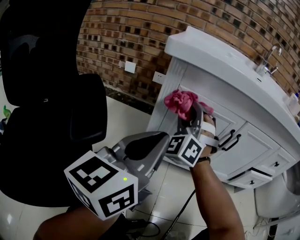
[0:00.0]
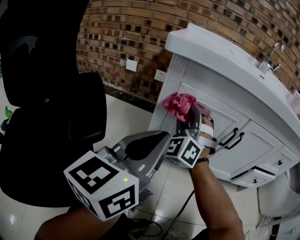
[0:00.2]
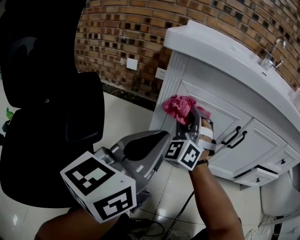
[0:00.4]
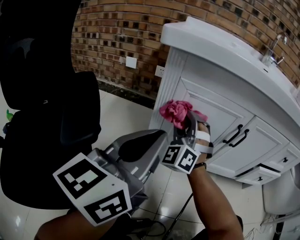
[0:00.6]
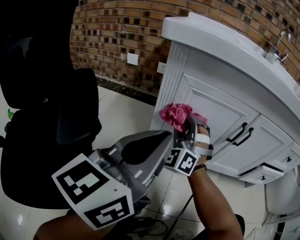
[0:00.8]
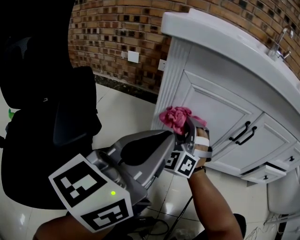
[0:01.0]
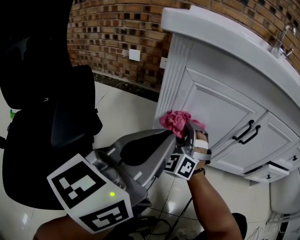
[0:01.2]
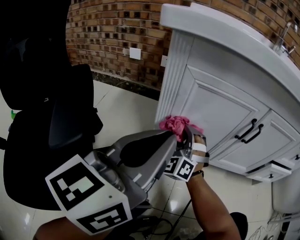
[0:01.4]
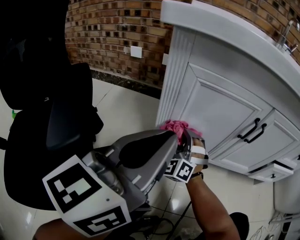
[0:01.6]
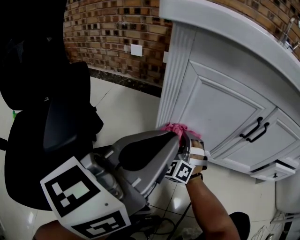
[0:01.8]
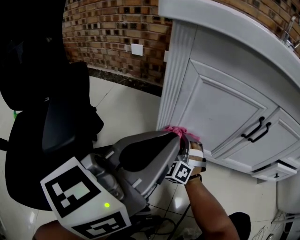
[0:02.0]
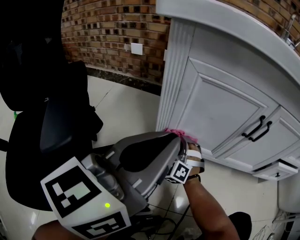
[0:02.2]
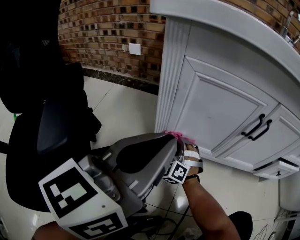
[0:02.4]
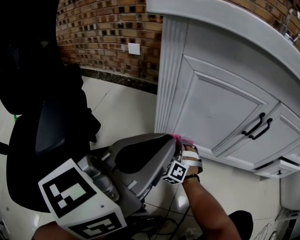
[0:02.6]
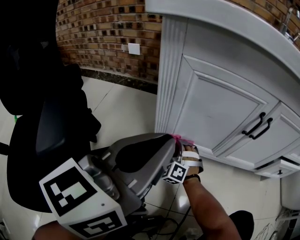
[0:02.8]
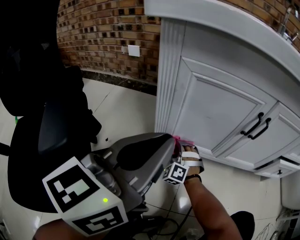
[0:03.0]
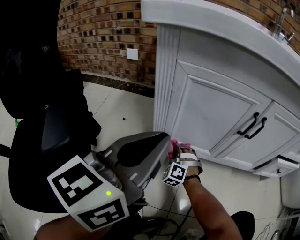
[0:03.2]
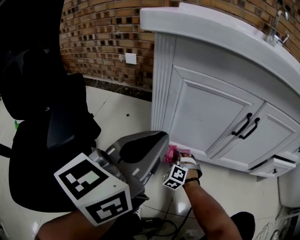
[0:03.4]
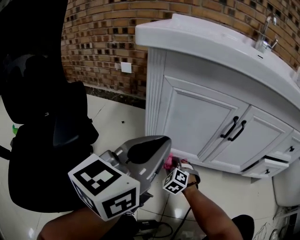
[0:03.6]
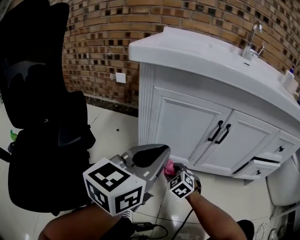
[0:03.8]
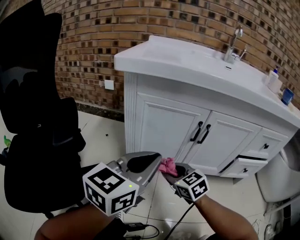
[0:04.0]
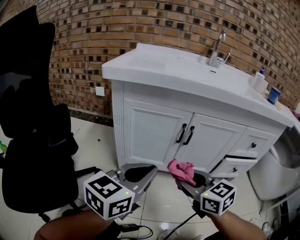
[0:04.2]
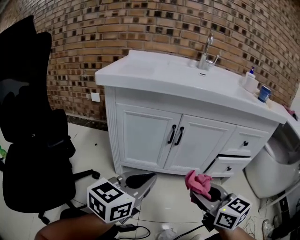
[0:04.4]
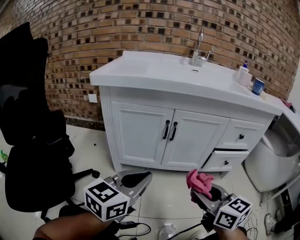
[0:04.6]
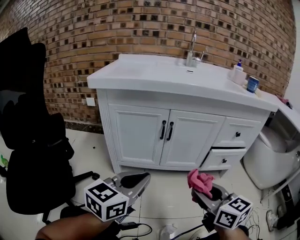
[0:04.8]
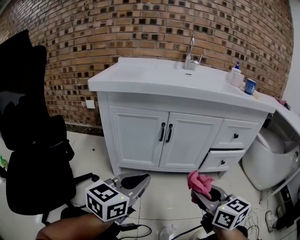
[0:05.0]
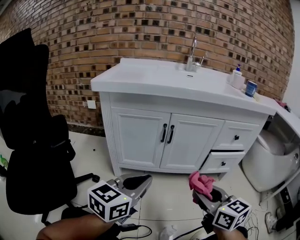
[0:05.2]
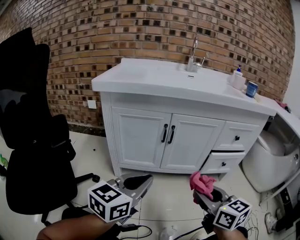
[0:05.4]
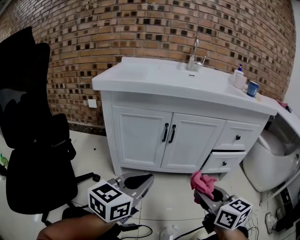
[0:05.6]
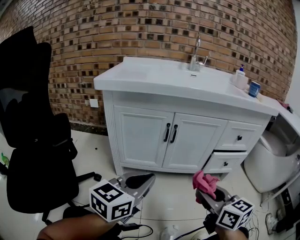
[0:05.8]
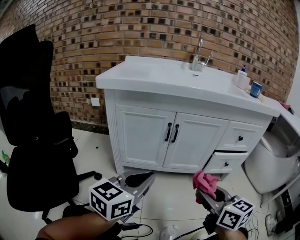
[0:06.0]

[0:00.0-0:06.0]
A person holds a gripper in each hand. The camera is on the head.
0:00.0 to 0:01.6: The right gripper moves downward, roughly 20 cm.
0:01.6 to 0:03.0: The right gripper shifts some 15 cm downward.
0:03.0 to 0:04.4: The left gripper moves to the right and backward, approximately 20 cm. Meanwhile the right gripper travels upward, to the right and backward by approximately 50 cm, and rolls clockwise, seen from behind, by approximately 70 degrees.
0:04.4 to 0:06.0: The right gripper shifts by approximately 5 cm.

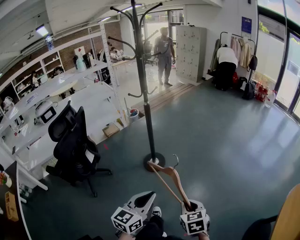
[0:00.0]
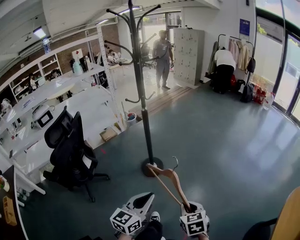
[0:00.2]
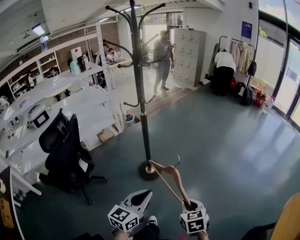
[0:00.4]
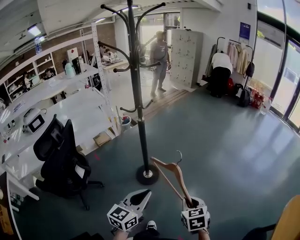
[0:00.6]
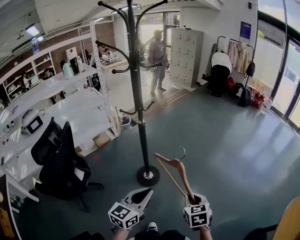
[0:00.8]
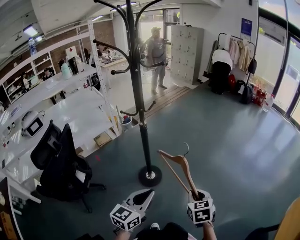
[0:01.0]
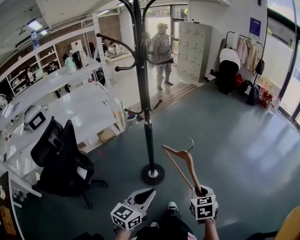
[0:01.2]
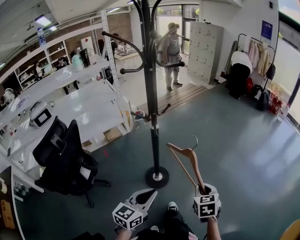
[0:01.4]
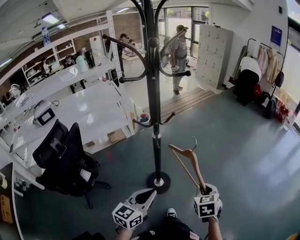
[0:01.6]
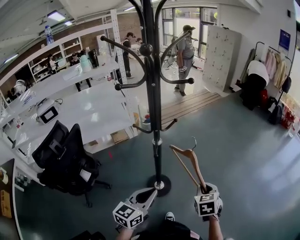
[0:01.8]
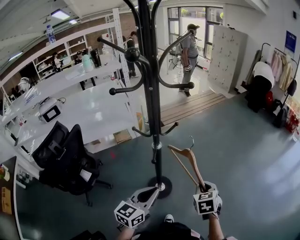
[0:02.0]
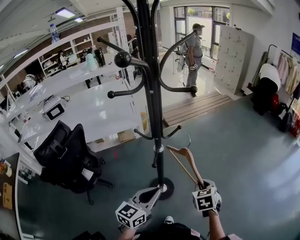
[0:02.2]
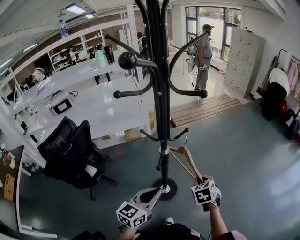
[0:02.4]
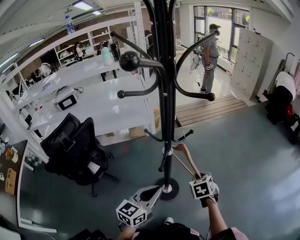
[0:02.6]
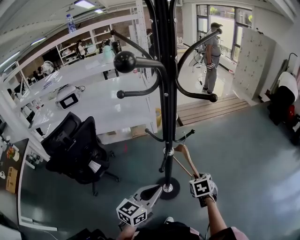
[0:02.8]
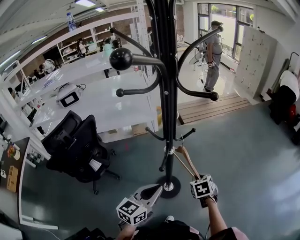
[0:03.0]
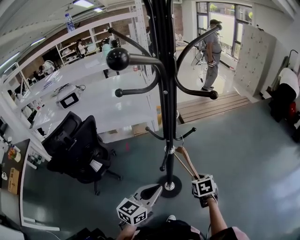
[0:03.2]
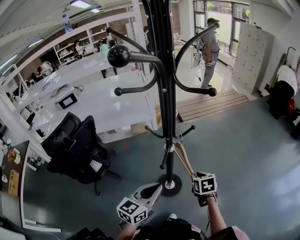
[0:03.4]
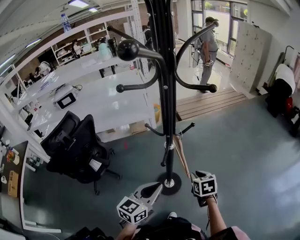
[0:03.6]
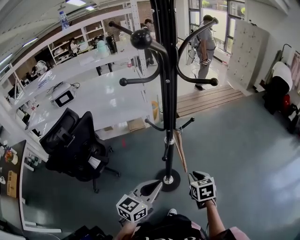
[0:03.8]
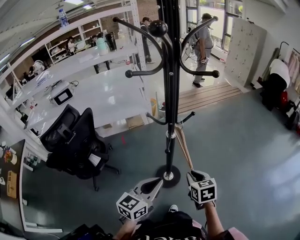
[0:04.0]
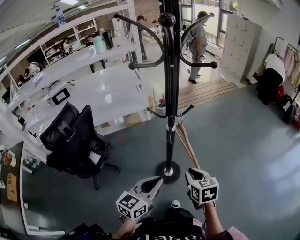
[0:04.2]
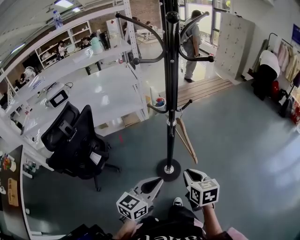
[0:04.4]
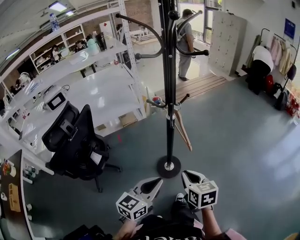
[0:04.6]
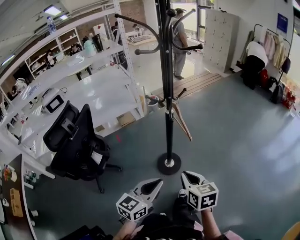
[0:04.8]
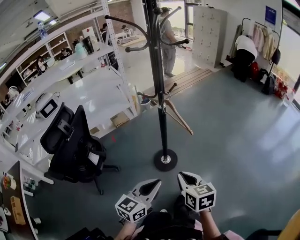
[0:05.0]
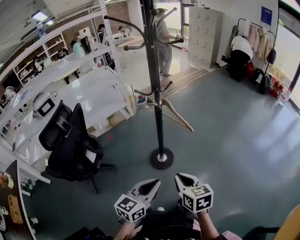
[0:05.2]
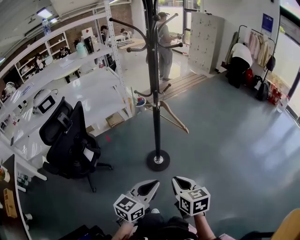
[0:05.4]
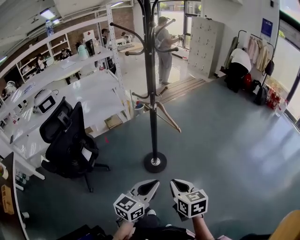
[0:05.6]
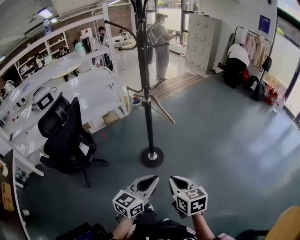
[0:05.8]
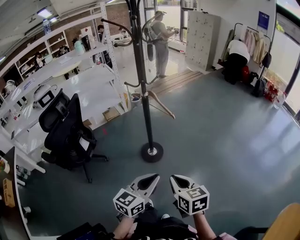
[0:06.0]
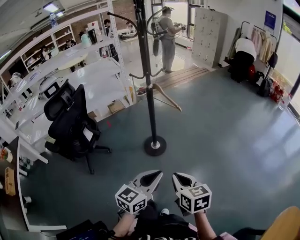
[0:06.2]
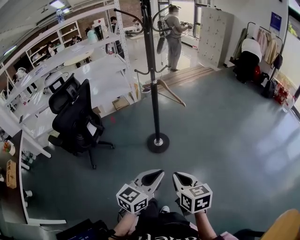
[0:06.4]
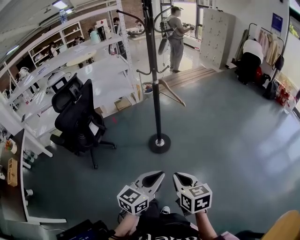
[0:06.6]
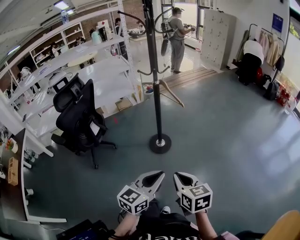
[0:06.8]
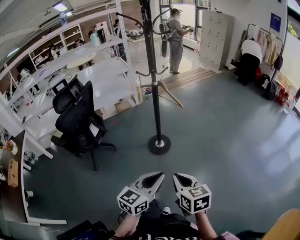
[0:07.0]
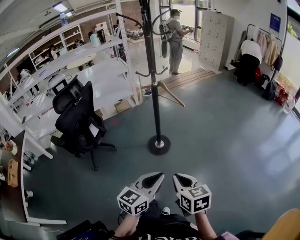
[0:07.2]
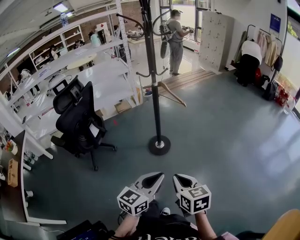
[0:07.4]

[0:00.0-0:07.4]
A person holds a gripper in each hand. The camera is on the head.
0:00.0 to 0:01.4: The grippers both shift forward by some 35 cm.
0:01.4 to 0:03.0: The two grippers go about 25 cm forward. The right gripper changes its angle by approximately 30 degrees. The left gripper turns by about 20 degrees.
0:03.0 to 0:04.4: The right gripper moves backward, to the left and upward, approximately 25 cm, and turns by roughly 30 degrees, while the left gripper shifts about 10 cm backward.
0:04.4 to 0:06.0: The left gripper goes about 30 cm backward and to the right; the right gripper shifts approximately 30 cm backward.
0:06.0 to 0:07.4: The two grippers go roughly 10 cm backward.

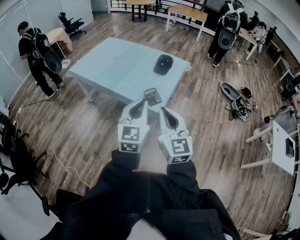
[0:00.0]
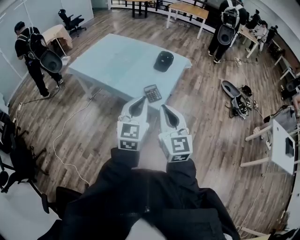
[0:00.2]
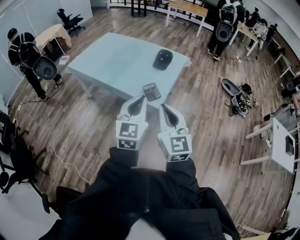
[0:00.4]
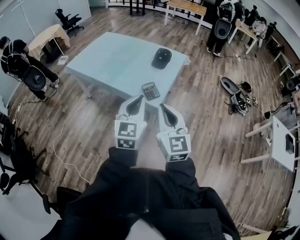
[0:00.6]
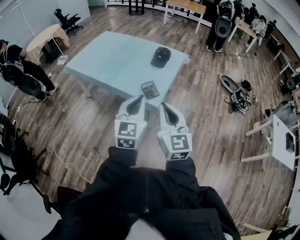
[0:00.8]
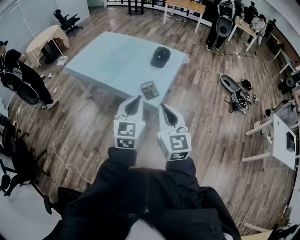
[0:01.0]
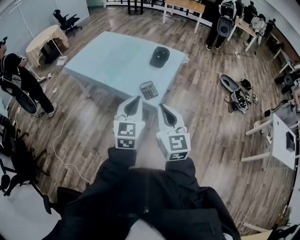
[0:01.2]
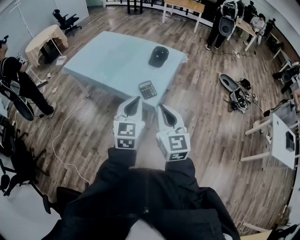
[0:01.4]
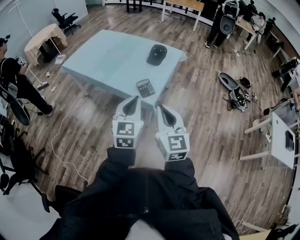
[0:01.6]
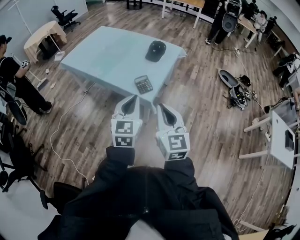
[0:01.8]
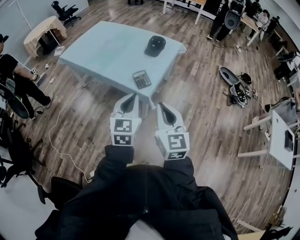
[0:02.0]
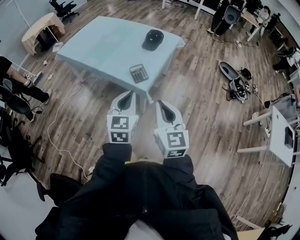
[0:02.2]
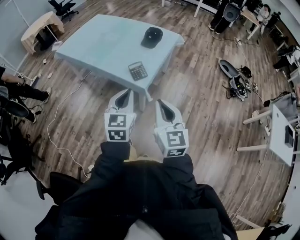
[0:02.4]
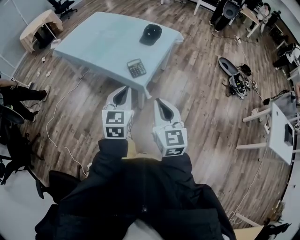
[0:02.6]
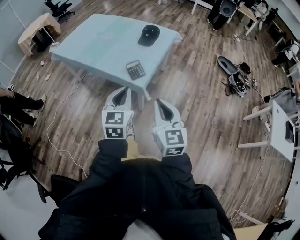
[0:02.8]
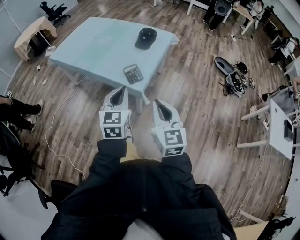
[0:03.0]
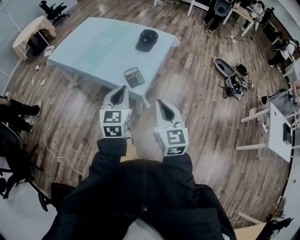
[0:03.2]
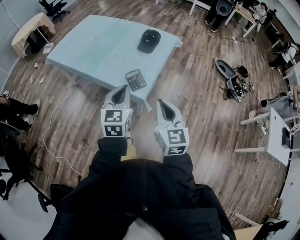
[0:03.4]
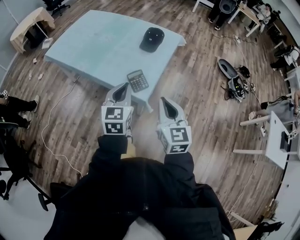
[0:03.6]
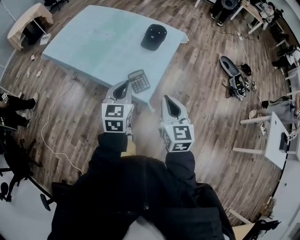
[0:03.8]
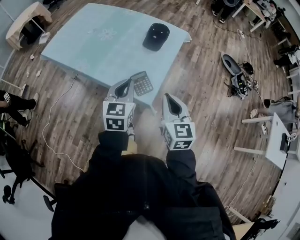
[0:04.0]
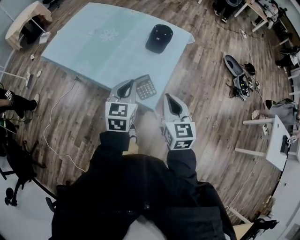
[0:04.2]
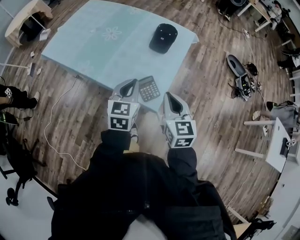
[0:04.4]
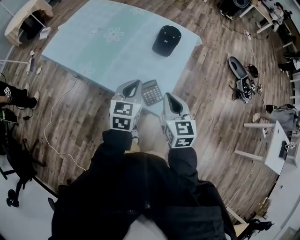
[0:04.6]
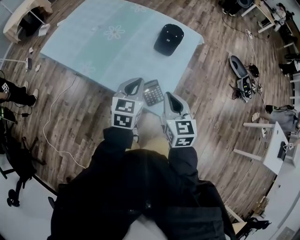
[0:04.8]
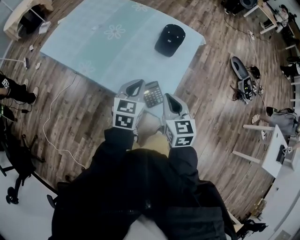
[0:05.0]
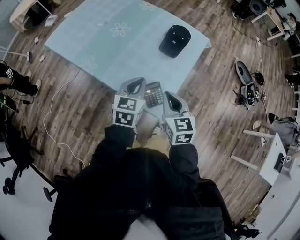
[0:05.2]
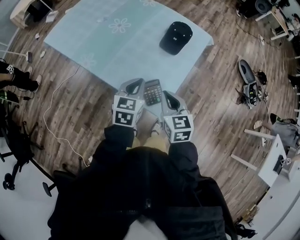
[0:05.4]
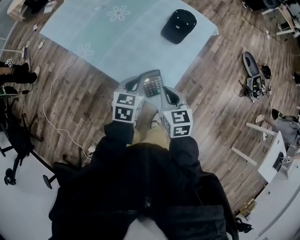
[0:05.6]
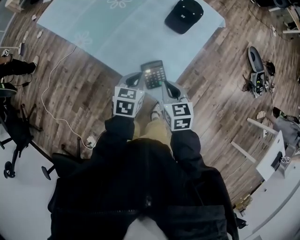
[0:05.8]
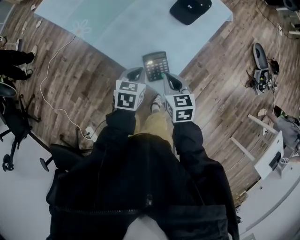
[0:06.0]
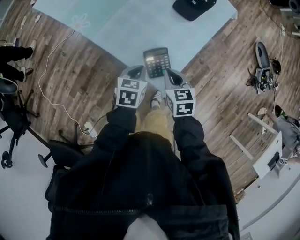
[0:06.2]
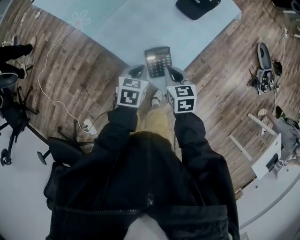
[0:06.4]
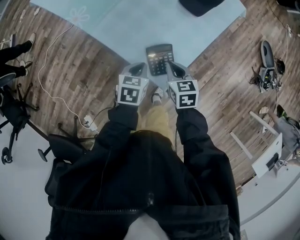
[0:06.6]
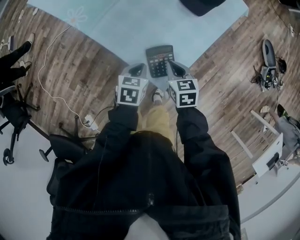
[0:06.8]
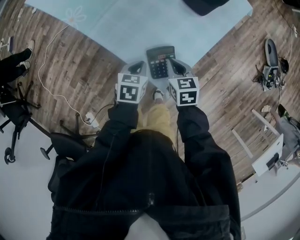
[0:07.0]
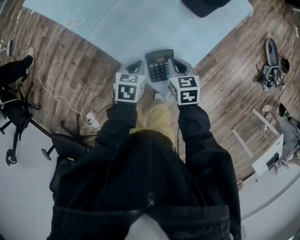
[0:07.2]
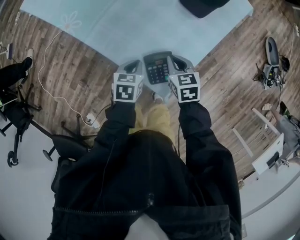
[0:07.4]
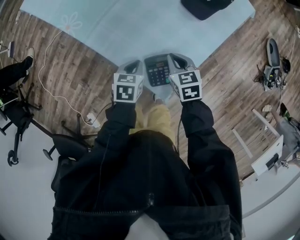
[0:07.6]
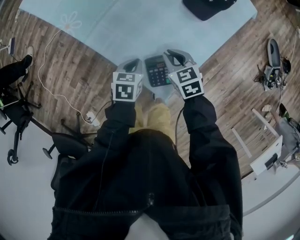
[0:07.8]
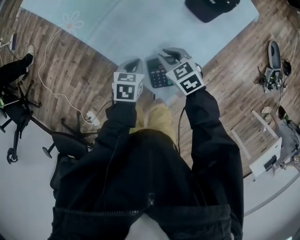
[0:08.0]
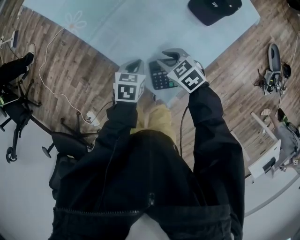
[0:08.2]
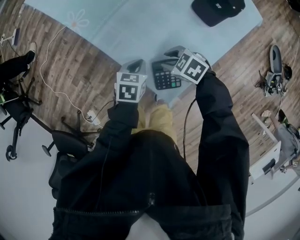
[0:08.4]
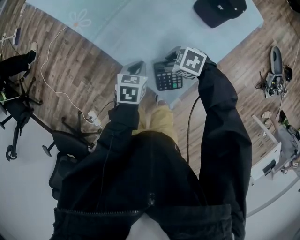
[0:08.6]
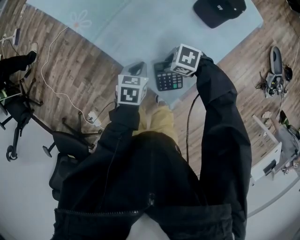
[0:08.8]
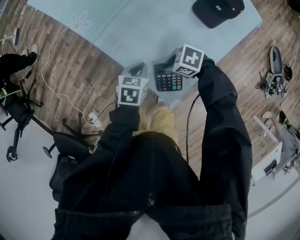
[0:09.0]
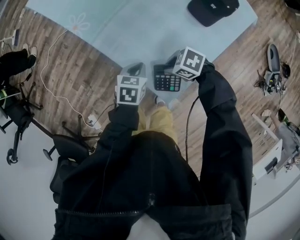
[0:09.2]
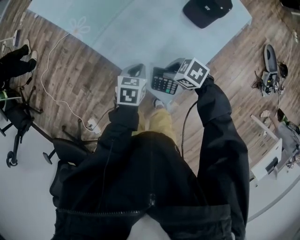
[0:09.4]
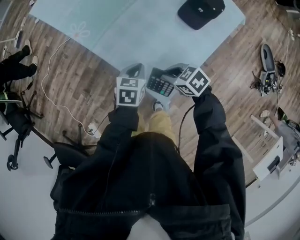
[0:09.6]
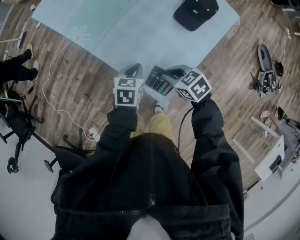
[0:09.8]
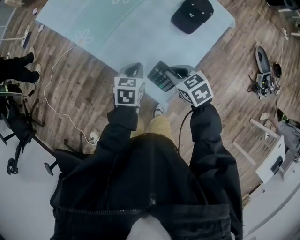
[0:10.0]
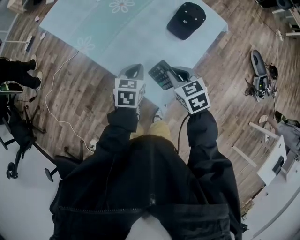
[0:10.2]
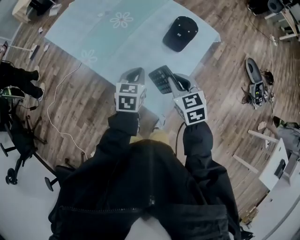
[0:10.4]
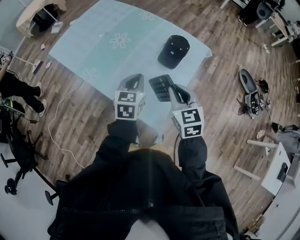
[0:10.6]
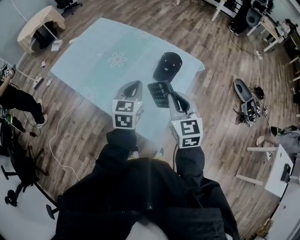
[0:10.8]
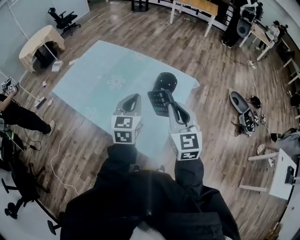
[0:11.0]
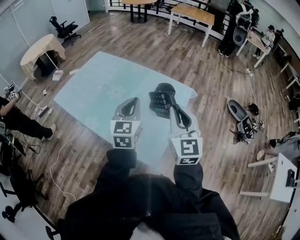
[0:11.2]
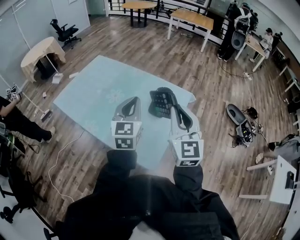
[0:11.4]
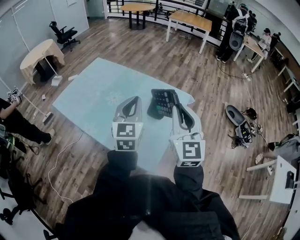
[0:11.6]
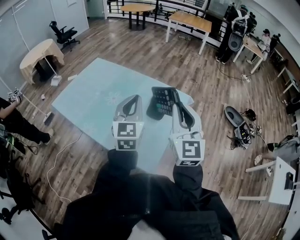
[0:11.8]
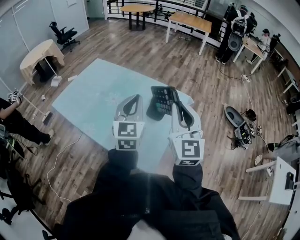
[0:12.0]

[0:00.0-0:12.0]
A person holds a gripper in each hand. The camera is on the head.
0:00.0 to 0:01.6: The grippers move only a little.
0:01.6 to 0:03.0: The left gripper is displaced downward by approximately 5 cm, while the right gripper is displaced downward and to the right by about 10 cm.
0:03.0 to 0:04.4: Both grippers move forward, roughly 25 cm.
0:04.4 to 0:06.0: Both grippers travel together downward, roughly 20 cm. The left gripper changes its angle by about 30 degrees, while the right gripper changes its angle by about 30 degrees.
0:06.0 to 0:07.6: The left gripper travels downward by roughly 10 cm; the right gripper goes roughly 15 cm forward and downward.
0:07.6 to 0:09.0: The right gripper ends up about 10 cm from where it was, and changes its angle by some 70 degrees.
0:09.0 to 0:10.4: Both grippers move upward, roughly 25 cm. The right gripper turns by about 80 degrees. Meanwhile the left gripper rotates approximately 30 degrees.
0:10.4 to 0:12.0: The grippers both shift upward by some 30 cm. The right gripper points its fingers approximately 50 degrees further upward. Meanwhile the left gripper tilts its fingers about 30 degrees upward.
